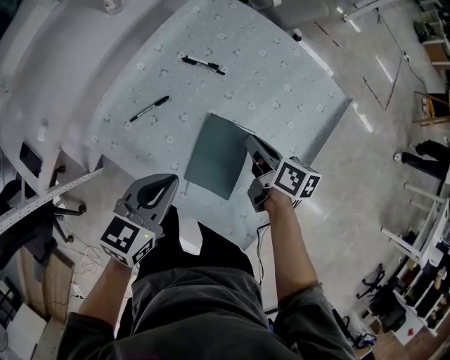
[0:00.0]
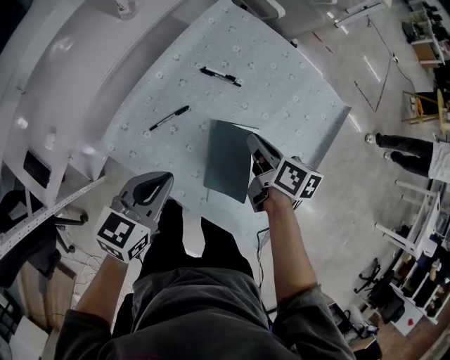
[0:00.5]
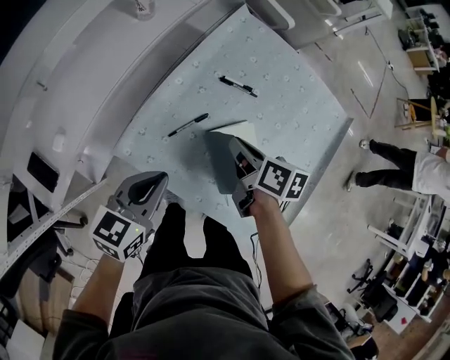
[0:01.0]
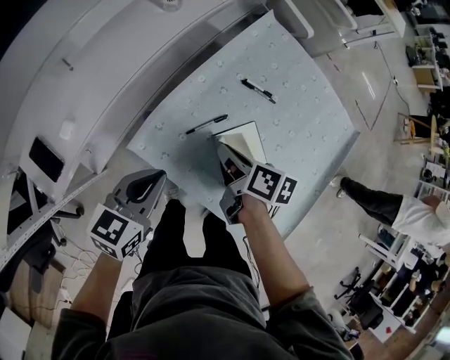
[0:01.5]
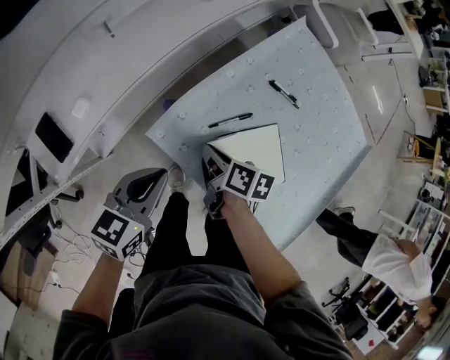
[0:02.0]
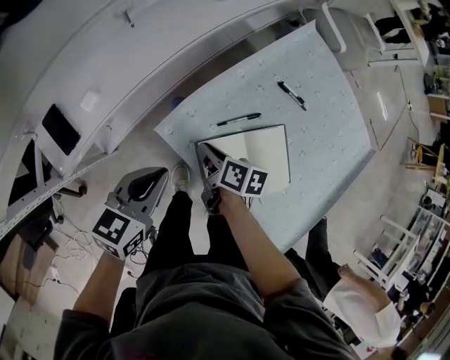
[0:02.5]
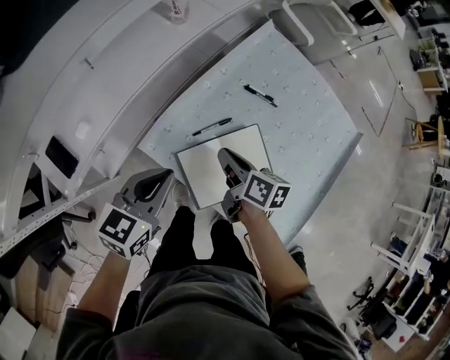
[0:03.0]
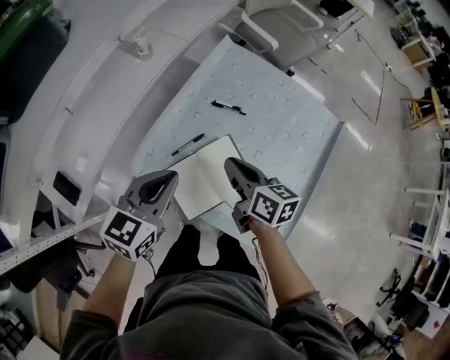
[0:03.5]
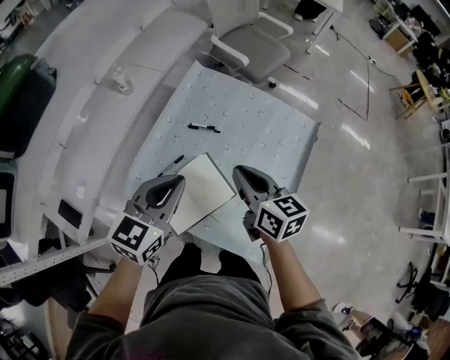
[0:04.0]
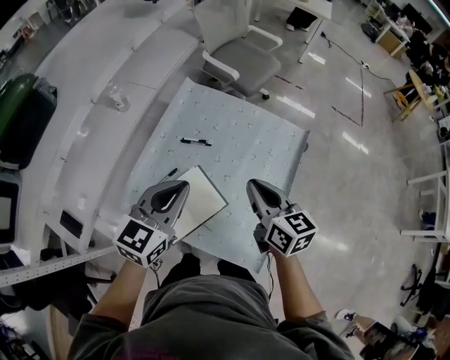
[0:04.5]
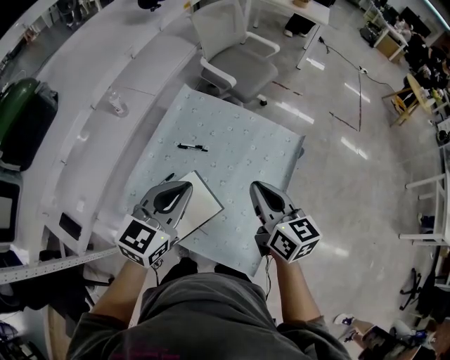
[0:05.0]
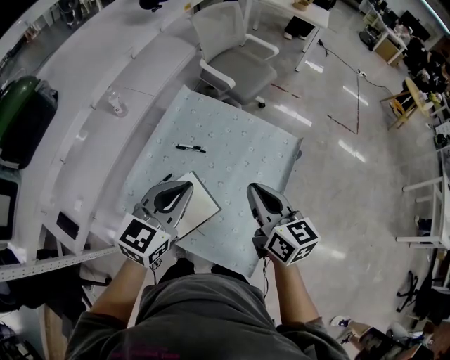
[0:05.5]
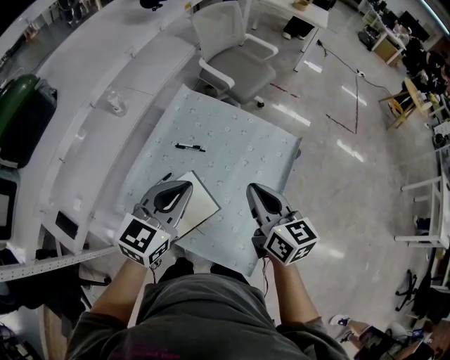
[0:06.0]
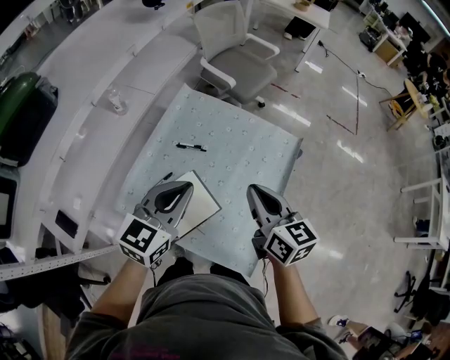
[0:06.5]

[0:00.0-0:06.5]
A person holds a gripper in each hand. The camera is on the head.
0:00.0 to 0:02.0: Both grippers travel together to the left, approximately 30 cm.
0:02.0 to 0:04.5: Both grippers move to the right and upward, approximately 40 cm. The right gripper turns by some 40 degrees. Meanwhile the left gripper rotates some 30 degrees.
0:04.5 to 0:06.5: The grippers stay close to where they were, moving slightly.

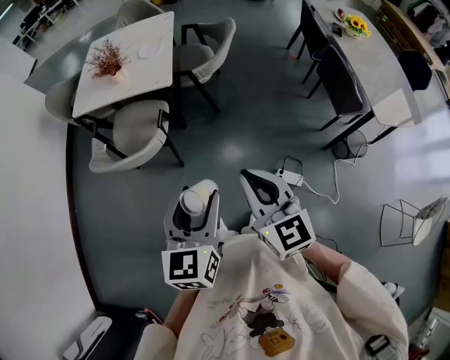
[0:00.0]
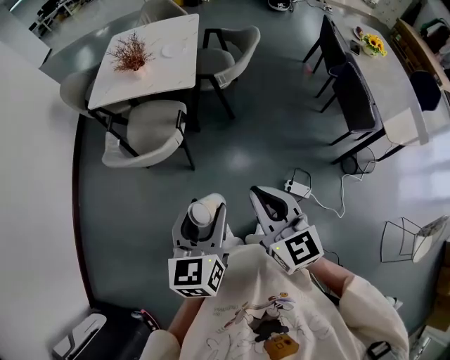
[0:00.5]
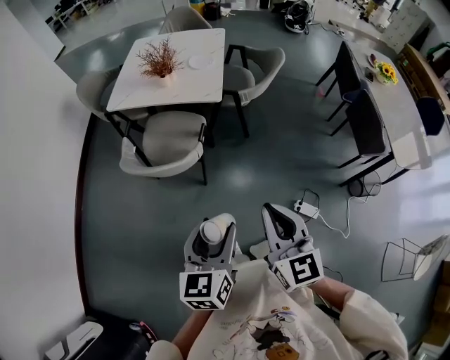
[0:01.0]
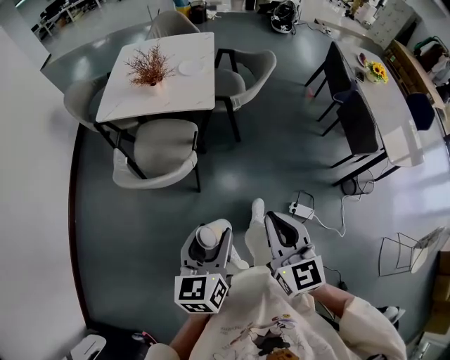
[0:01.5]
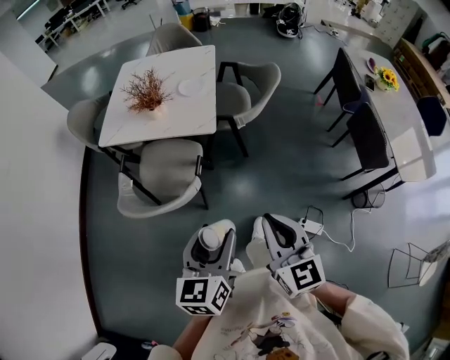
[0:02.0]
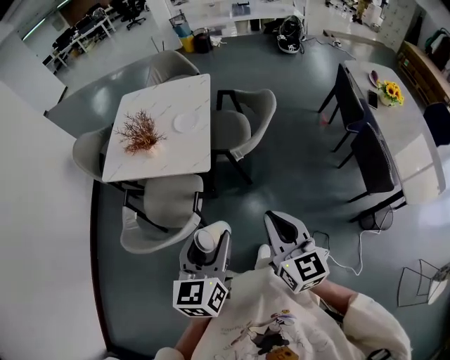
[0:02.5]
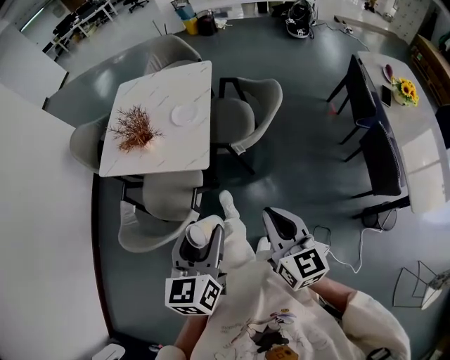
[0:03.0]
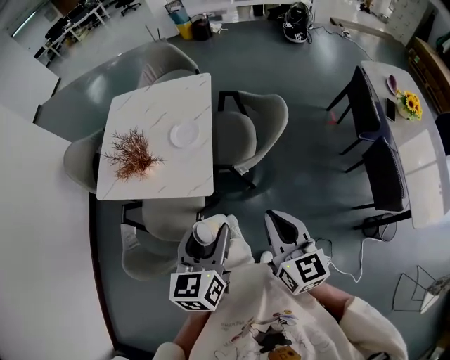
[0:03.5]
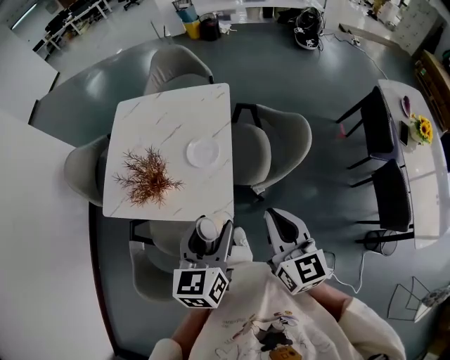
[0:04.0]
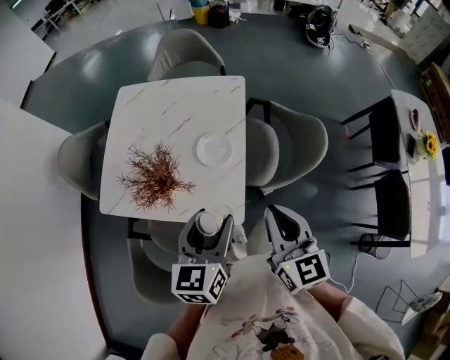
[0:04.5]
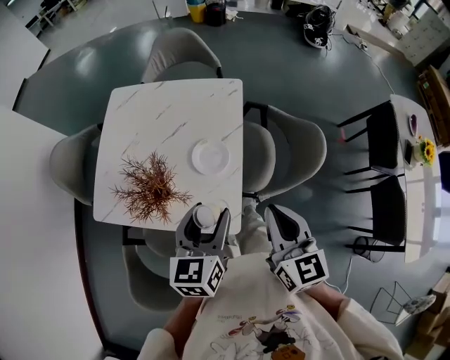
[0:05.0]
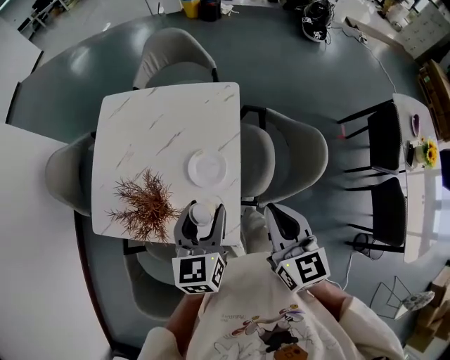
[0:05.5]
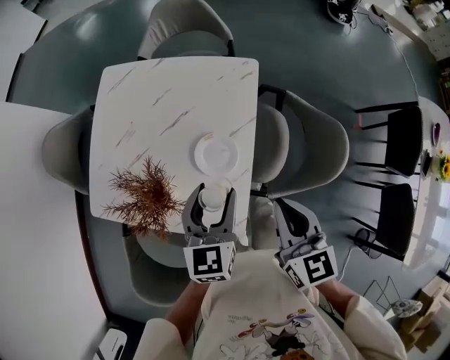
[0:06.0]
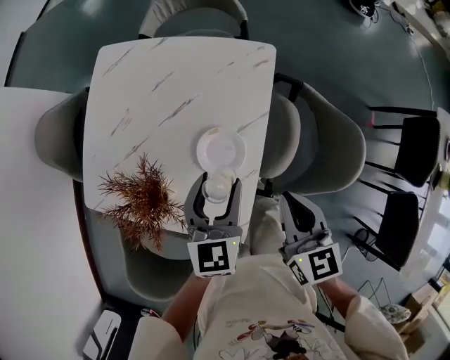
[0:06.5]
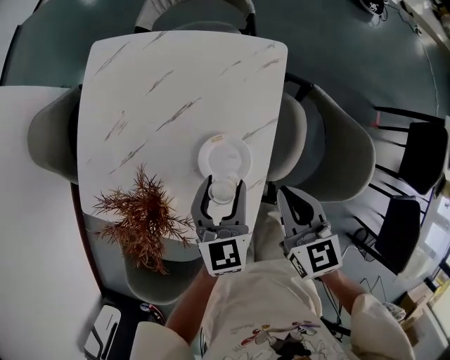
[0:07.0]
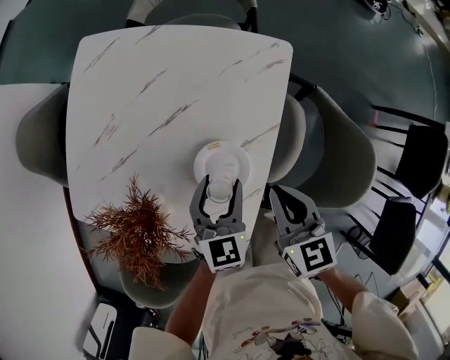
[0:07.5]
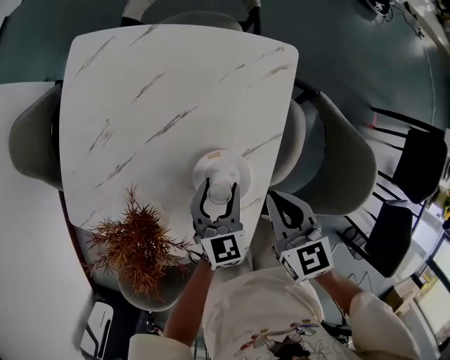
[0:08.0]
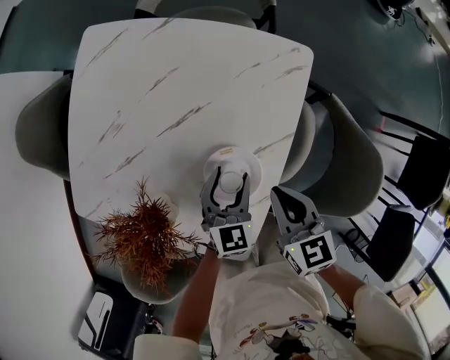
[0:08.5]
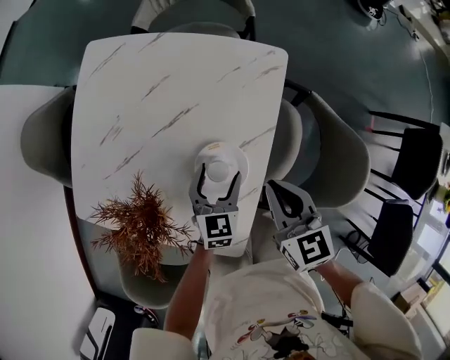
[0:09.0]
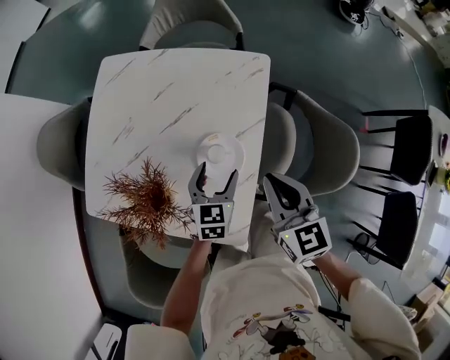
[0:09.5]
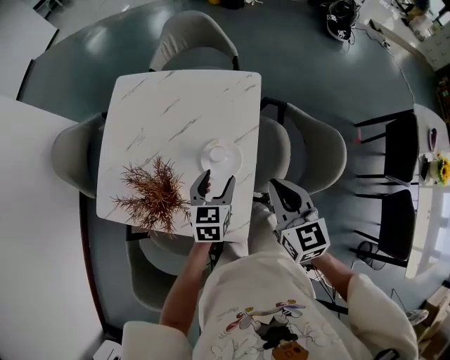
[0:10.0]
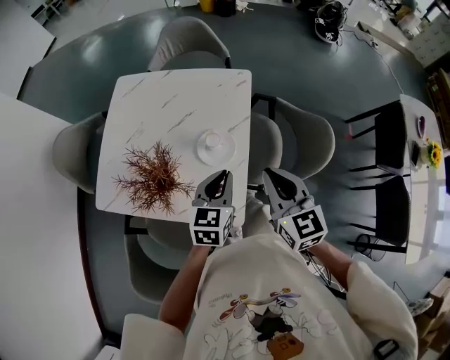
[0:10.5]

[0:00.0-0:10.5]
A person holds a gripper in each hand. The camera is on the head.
0:00.0 to 0:02.0: The two grippers go some 15 cm forward and to the left.
0:02.0 to 0:04.0: Both grippers are carried forward, some 40 cm.
0:04.0 to 0:06.5: Both grippers move forward and downward, approximately 30 cm.
0:06.5 to 0:08.5: The right gripper is displaced downward and forward by roughly 15 cm. The left gripper is displaced downward by some 20 cm.
0:08.5 to 0:10.5: Both grippers travel together upward and backward, approximately 25 cm. The right gripper swivels about 30 degrees, while the left gripper closes its fingers.

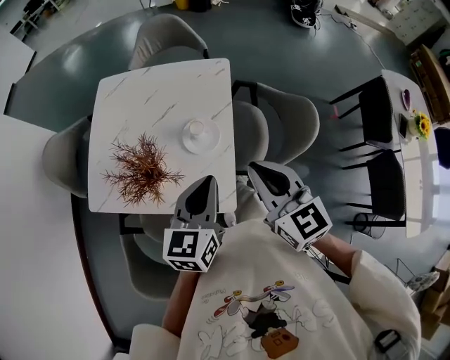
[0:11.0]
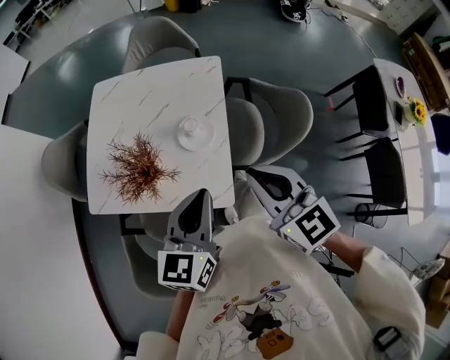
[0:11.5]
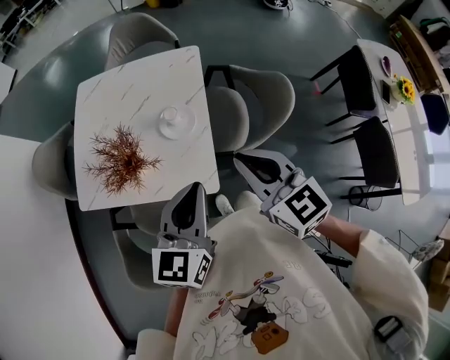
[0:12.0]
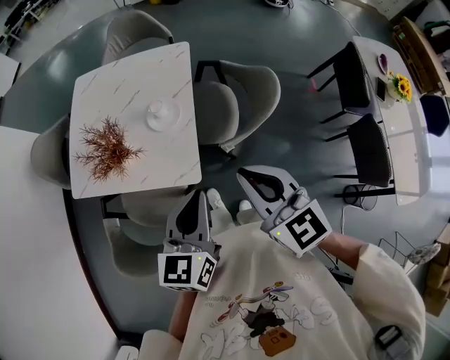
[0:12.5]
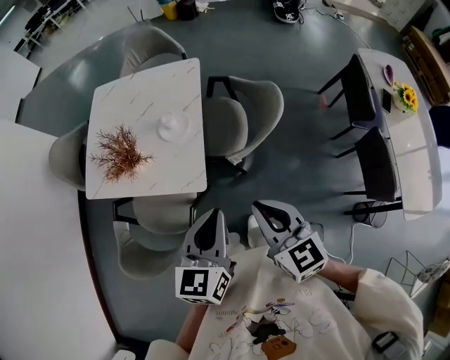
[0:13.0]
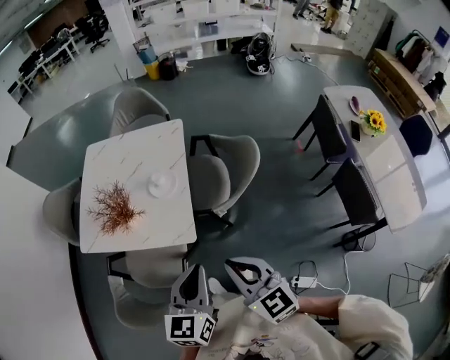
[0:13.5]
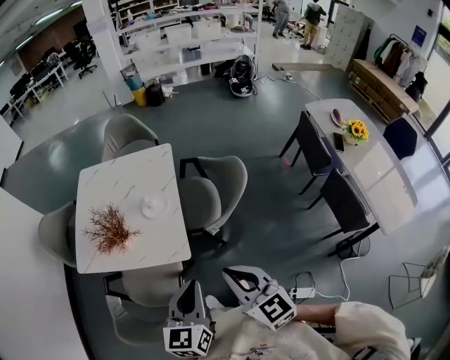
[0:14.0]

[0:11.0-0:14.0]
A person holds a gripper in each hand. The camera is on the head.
0:11.0 to 0:12.5: Both grippers move backward and to the right, roughly 15 cm.
0:12.5 to 0:14.0: The two grippers go roughly 10 cm backward.

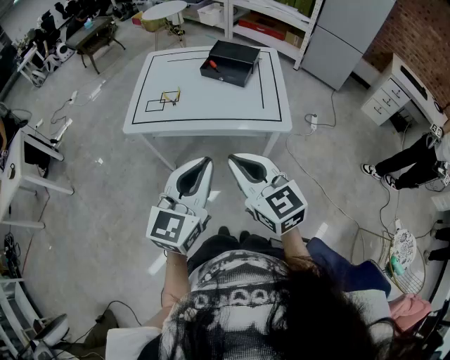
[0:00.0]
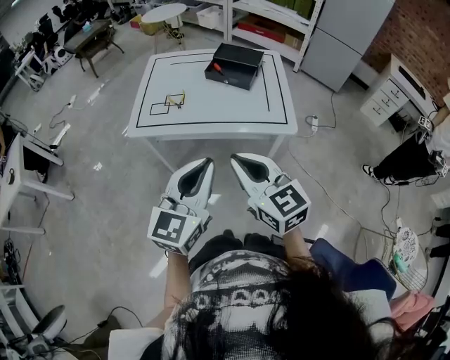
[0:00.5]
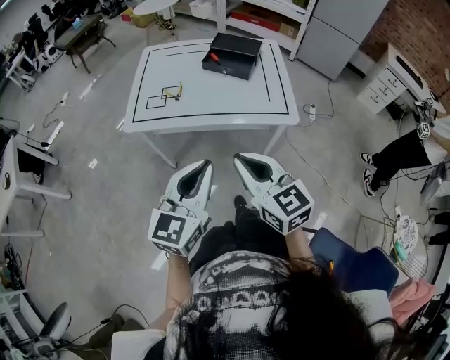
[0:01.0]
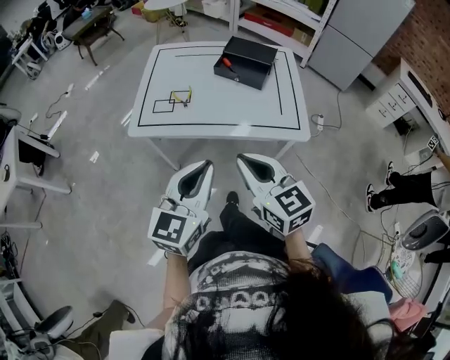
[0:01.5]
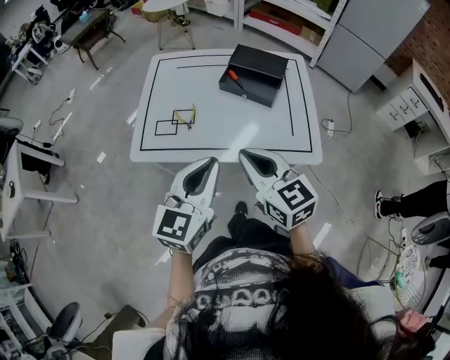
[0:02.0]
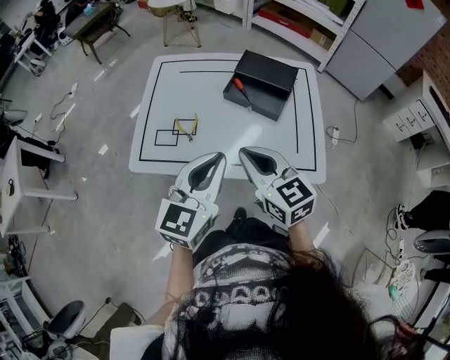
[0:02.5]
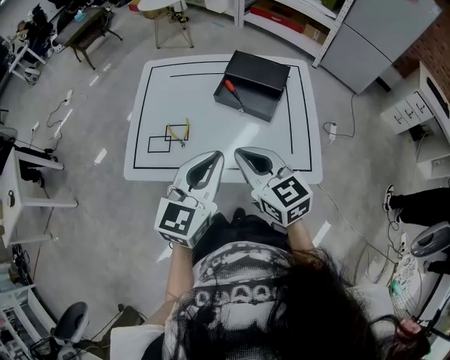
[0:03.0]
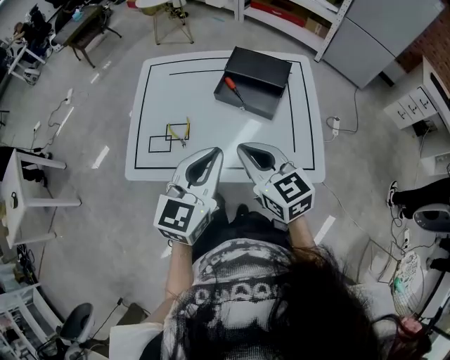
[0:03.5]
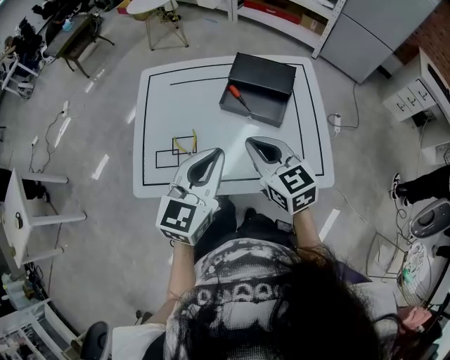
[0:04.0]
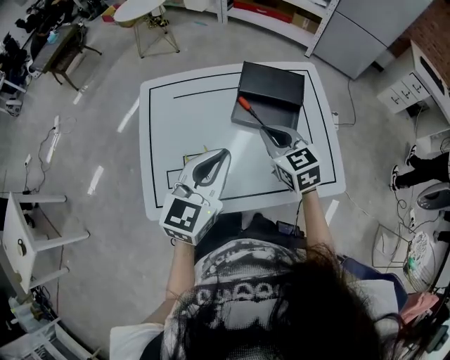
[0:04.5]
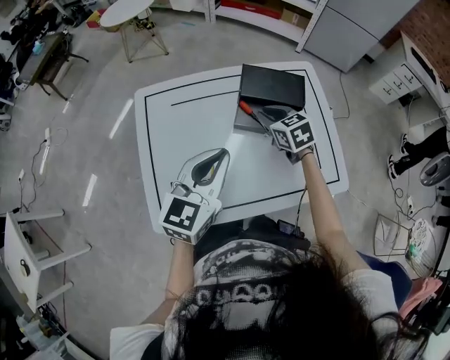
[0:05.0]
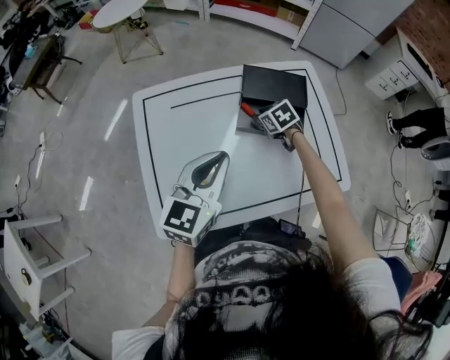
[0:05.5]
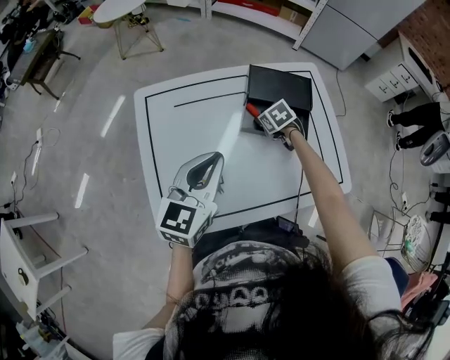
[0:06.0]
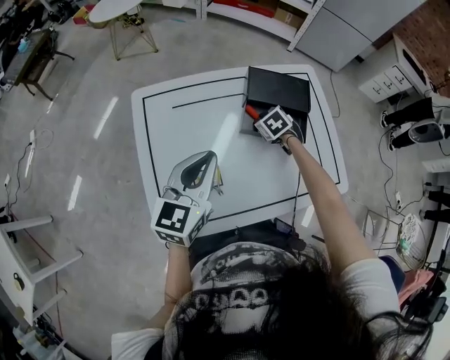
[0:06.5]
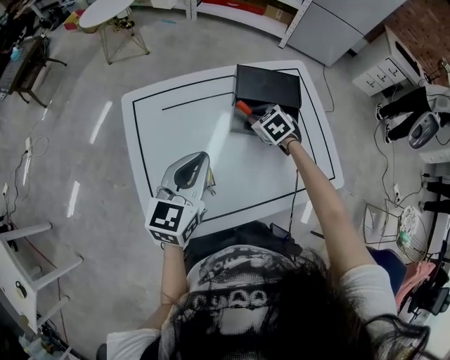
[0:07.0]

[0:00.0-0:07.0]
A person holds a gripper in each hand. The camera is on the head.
0:00.0 to 0:02.0: Both grippers travel together forward, roughly 25 cm.
0:02.0 to 0:03.5: The grippers both shift forward by roughly 15 cm.
0:03.5 to 0:05.0: The right gripper travels forward and downward by roughly 30 cm, and swivels approximately 30 degrees. The left gripper moves forward and to the left, some 20 cm.
0:05.0 to 0:07.0: The left gripper moves to the left, approximately 5 cm. Meanwhile the right gripper travels downward by about 10 cm, and turns by about 20 degrees.
